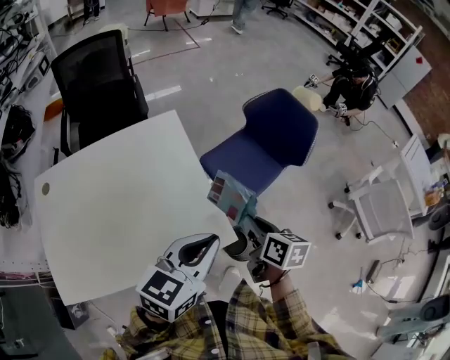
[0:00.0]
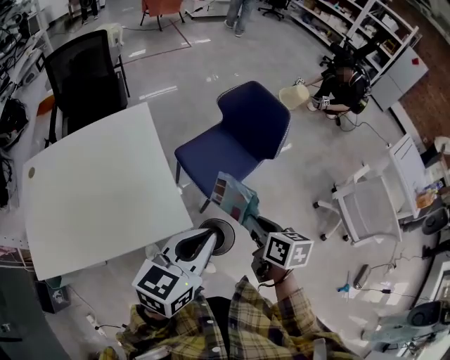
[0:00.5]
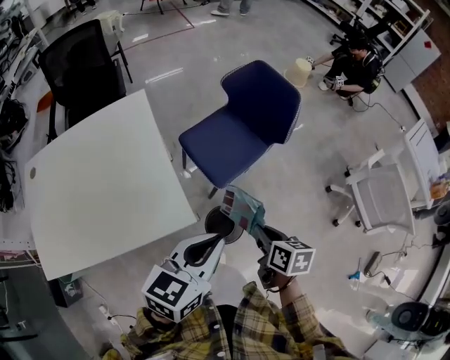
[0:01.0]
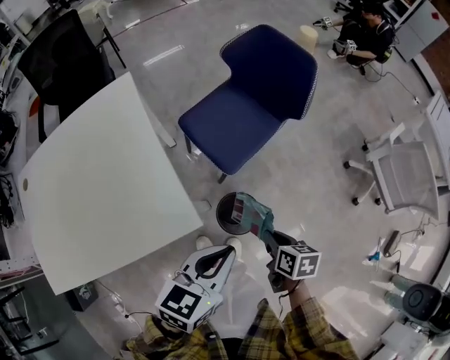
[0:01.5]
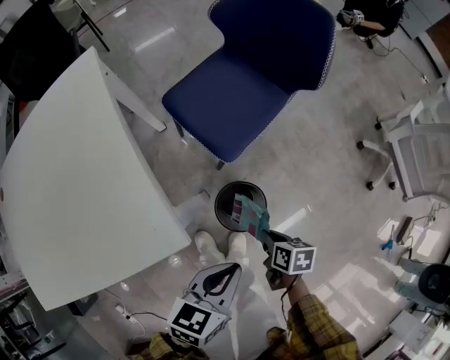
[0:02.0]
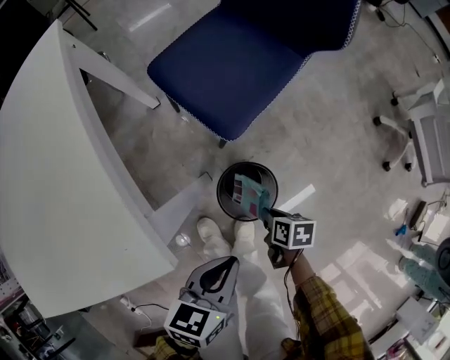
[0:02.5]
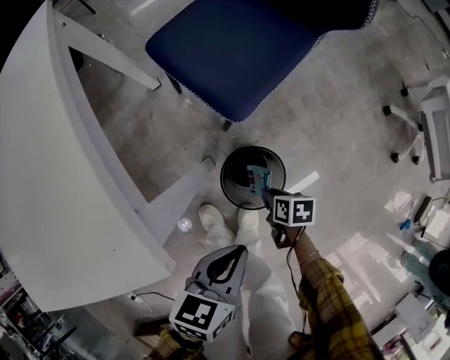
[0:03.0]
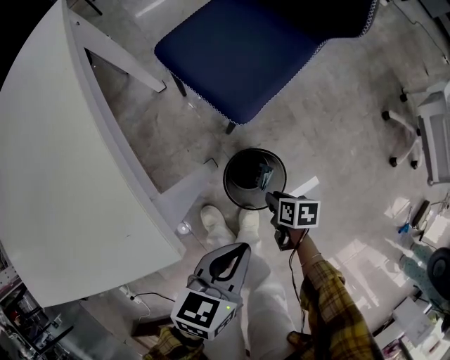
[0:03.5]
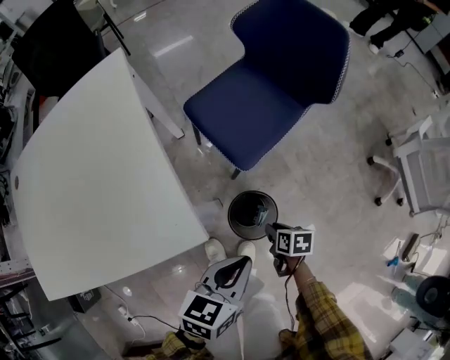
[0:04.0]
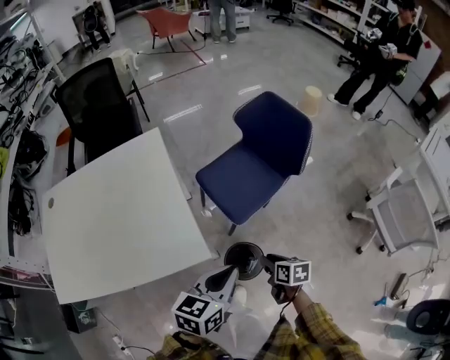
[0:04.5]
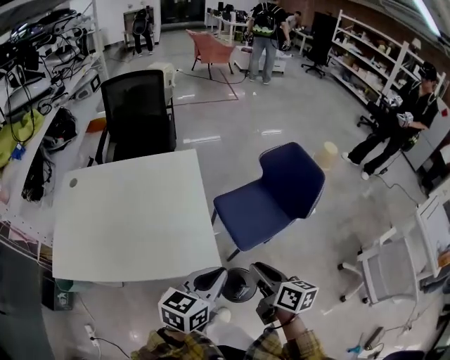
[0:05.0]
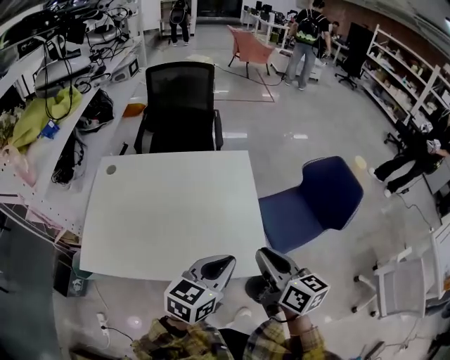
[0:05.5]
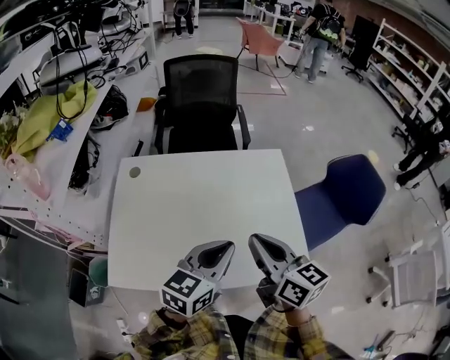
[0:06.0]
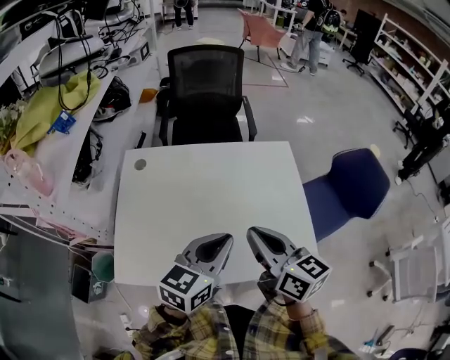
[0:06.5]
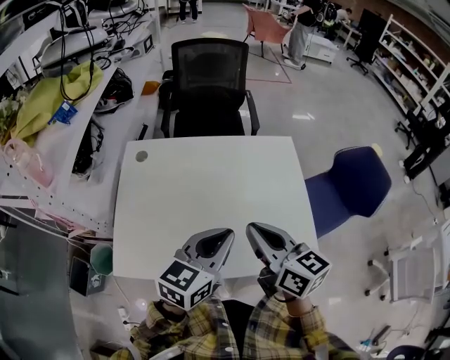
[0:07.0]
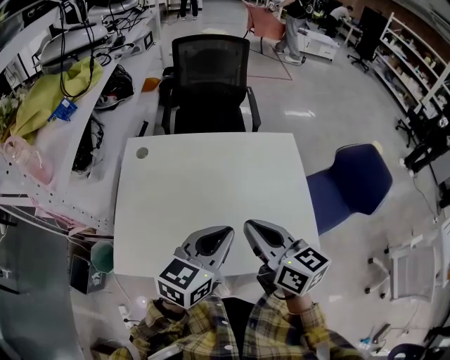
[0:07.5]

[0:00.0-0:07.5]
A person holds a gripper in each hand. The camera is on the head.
0:00.0 to 0:02.0: Both grippers move downward and to the right, about 40 cm. The left gripper rotates some 20 degrees. The right gripper changes its angle by approximately 30 degrees.
0:02.0 to 0:04.0: The left gripper travels downward and back again, roughly 15 cm each way, while the right gripper reaches approximately 20 cm downward, then returns.
0:04.0 to 0:05.5: The right gripper moves upward and to the left, some 60 cm, and angles its fingers upward, by approximately 50 degrees; the left gripper heads upward and to the left, covering approximately 40 cm, and changes its angle by about 30 degrees.
0:05.5 to 0:07.5: The grippers both shift to the left by some 25 cm.

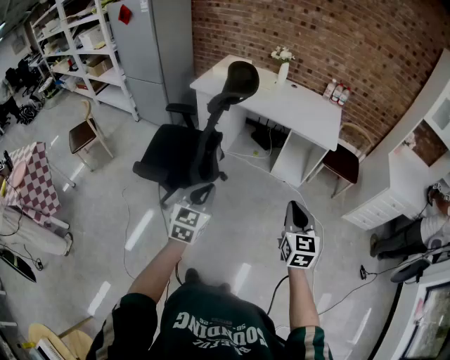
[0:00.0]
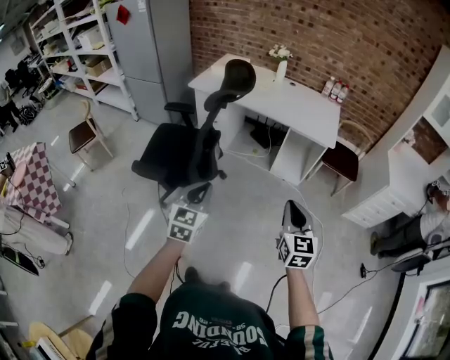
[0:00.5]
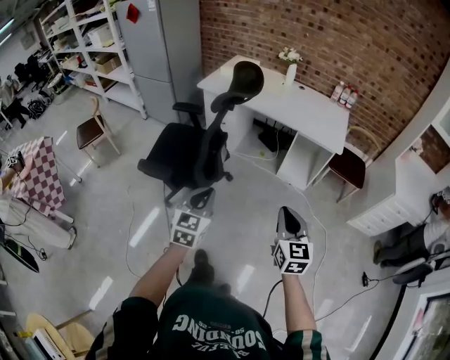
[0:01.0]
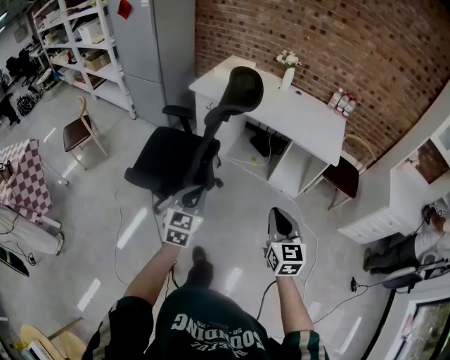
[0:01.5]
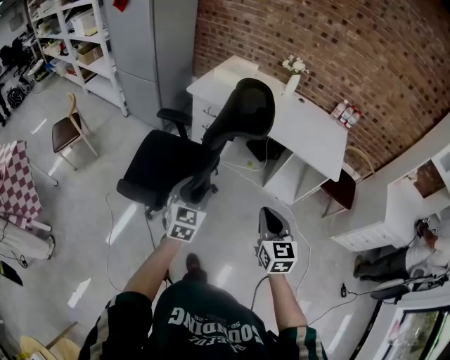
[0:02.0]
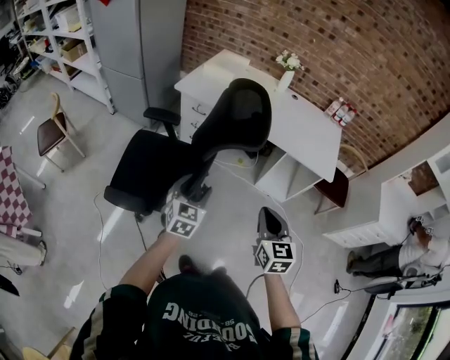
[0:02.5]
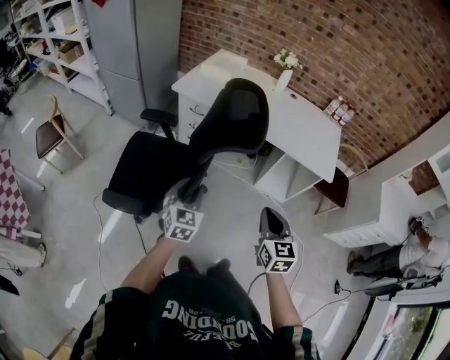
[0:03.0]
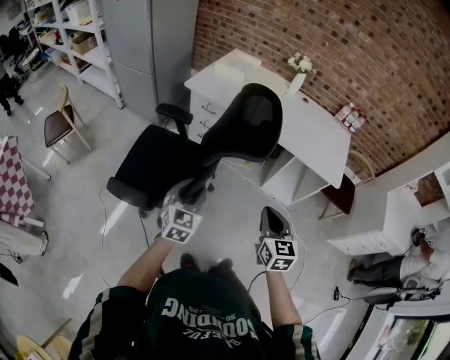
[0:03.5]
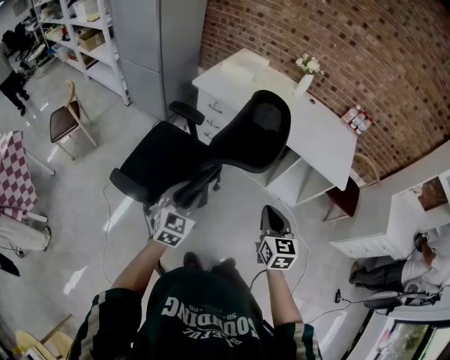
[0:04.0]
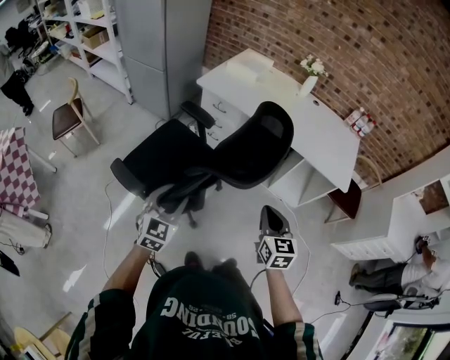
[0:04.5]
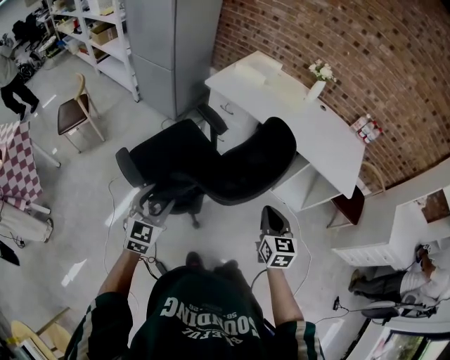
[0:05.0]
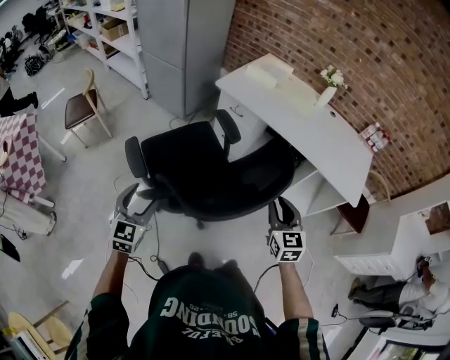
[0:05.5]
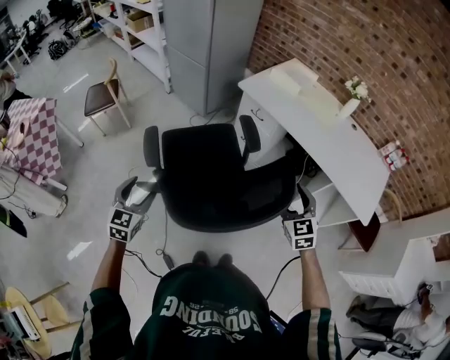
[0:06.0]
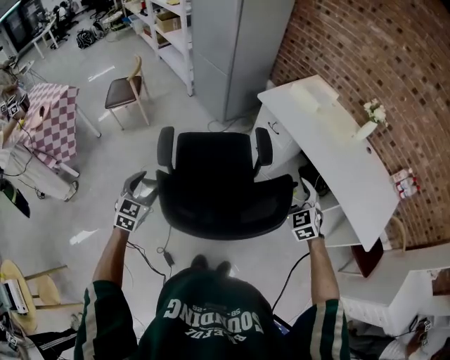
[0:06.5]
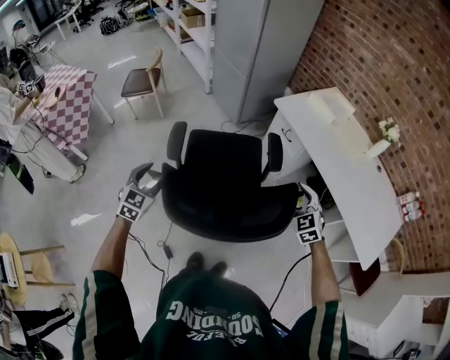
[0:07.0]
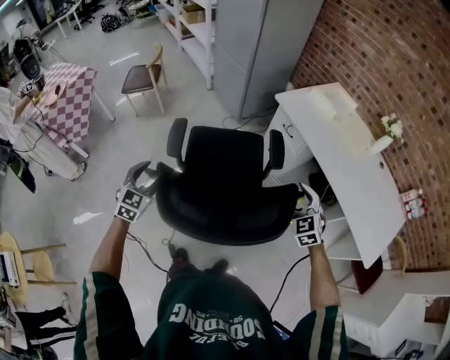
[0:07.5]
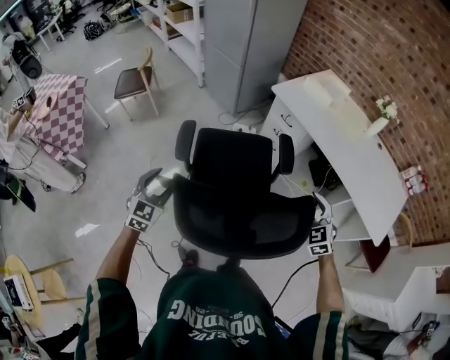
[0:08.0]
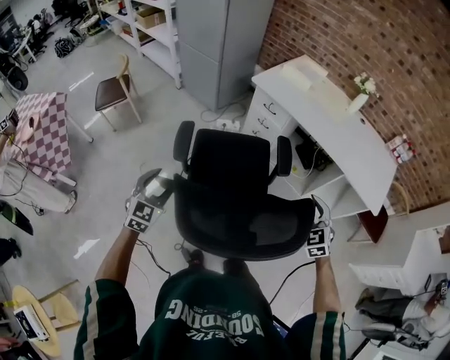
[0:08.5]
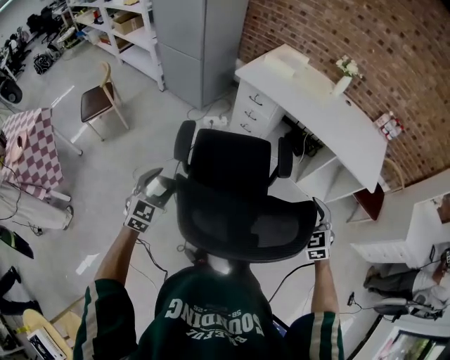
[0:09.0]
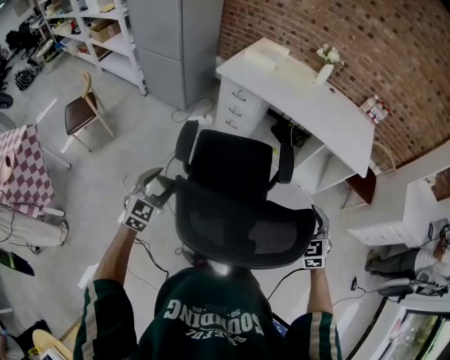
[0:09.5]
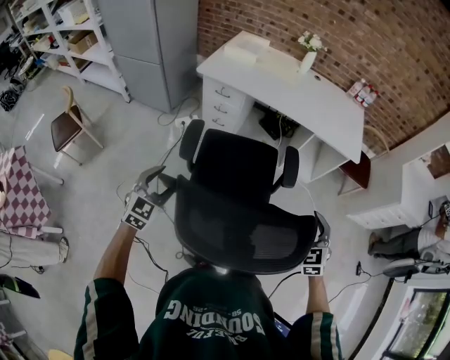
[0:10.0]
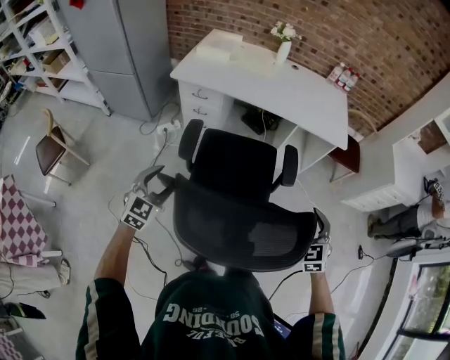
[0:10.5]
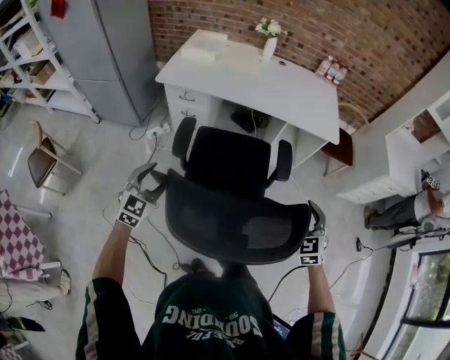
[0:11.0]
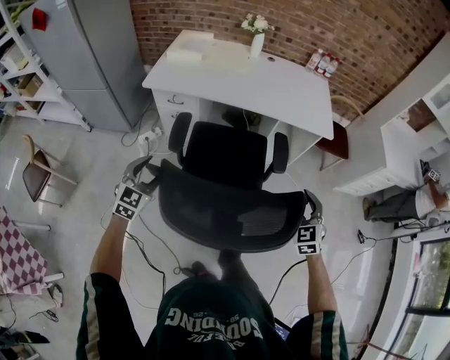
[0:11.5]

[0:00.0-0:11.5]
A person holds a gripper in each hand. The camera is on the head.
0:00.0 to 0:02.0: The right gripper goes roughly 25 cm forward and to the left. Meanwhile the left gripper heads forward, covering roughly 25 cm, and opens.
0:02.0 to 0:04.0: The right gripper goes some 10 cm forward. The left gripper ends up some 5 cm from where it was.
0:04.0 to 0:06.0: The left gripper is displaced to the left by approximately 25 cm, turns by about 20 degrees, and opens, while the right gripper heads forward, covering roughly 15 cm, turns by some 30 degrees, and opens its fingers.
0:06.0 to 0:07.5: The right gripper is displaced forward by roughly 10 cm, and rotates approximately 20 degrees.
0:07.5 to 0:09.5: The right gripper changes place by approximately 30 cm, and turns by roughly 40 degrees; the left gripper swivels approximately 30 degrees.
0:09.5 to 0:11.5: The left gripper is displaced forward by some 25 cm; the right gripper shifts about 10 cm to the right and forward.

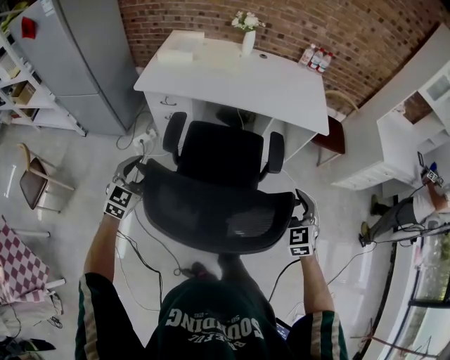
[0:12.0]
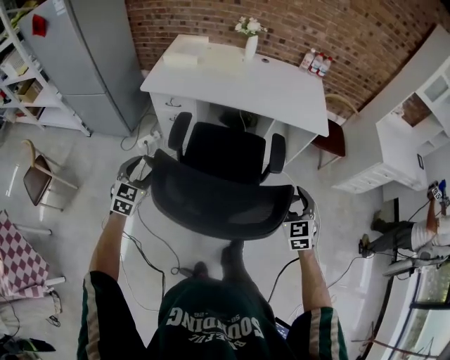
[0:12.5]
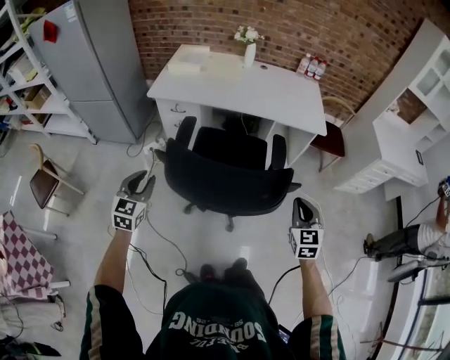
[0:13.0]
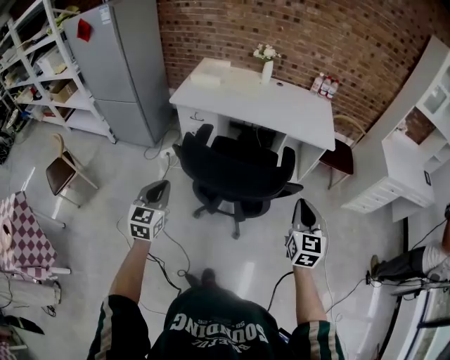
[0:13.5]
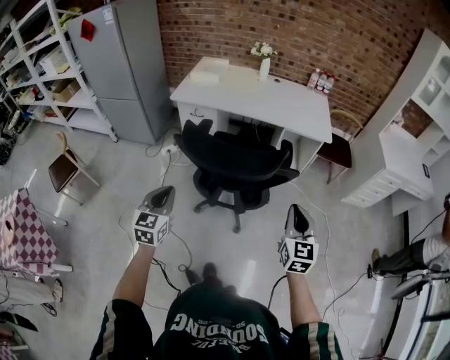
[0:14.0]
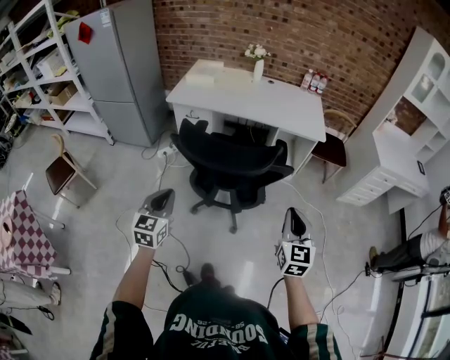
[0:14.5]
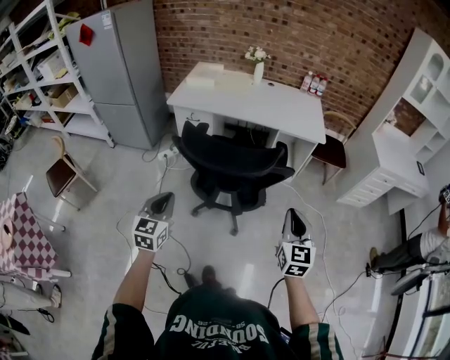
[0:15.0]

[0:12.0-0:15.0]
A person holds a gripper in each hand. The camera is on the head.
0:12.0 to 0:13.5: Both grippers travel together backward and upward, roughly 20 cm. The left gripper turns by about 20 degrees, and closes. Meanwhile the right gripper rotates about 30 degrees, and closes its fingers.
0:13.5 to 0:15.0: The grippers both shift backward by some 10 cm.

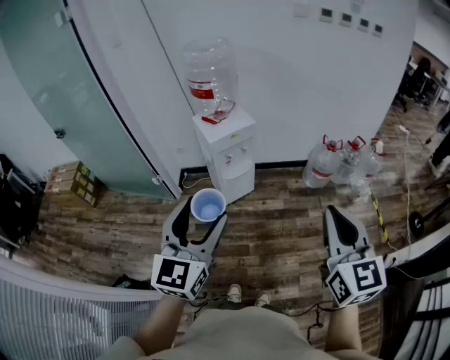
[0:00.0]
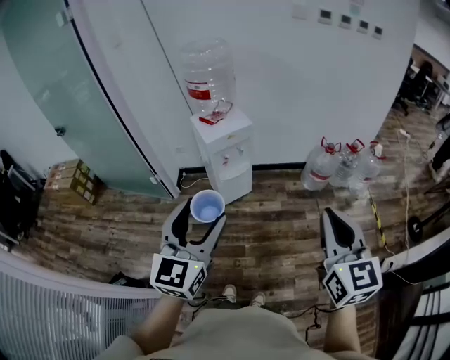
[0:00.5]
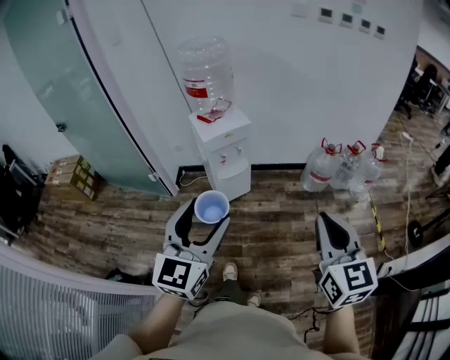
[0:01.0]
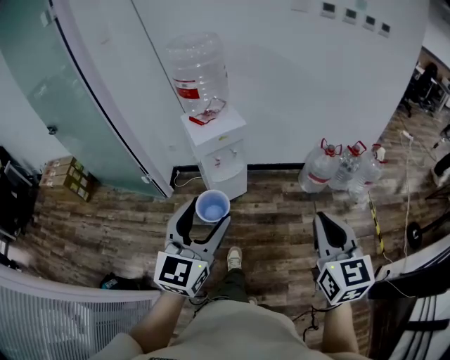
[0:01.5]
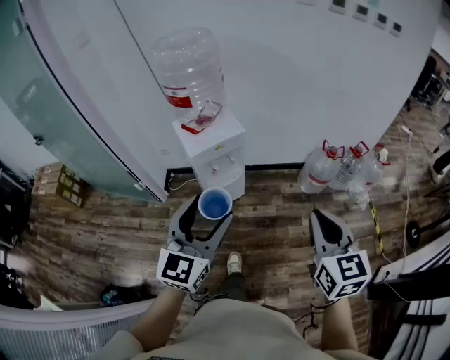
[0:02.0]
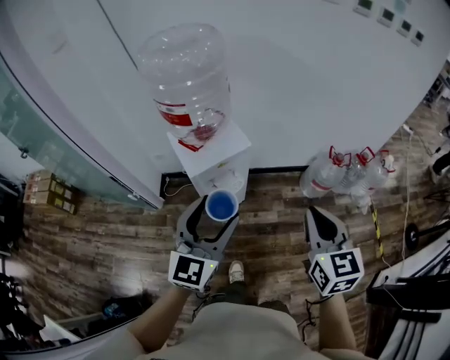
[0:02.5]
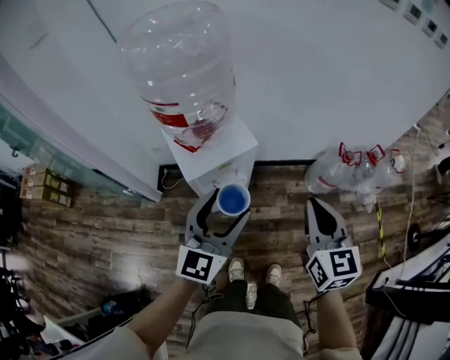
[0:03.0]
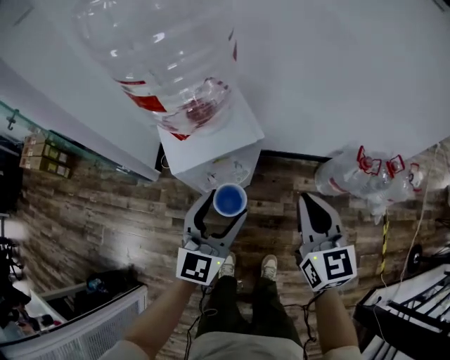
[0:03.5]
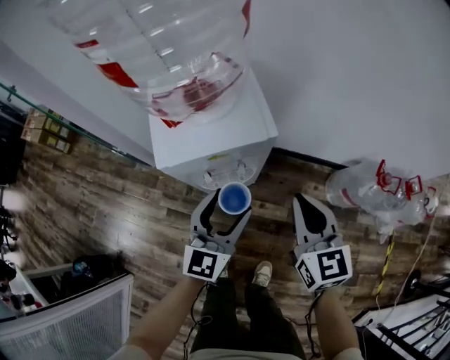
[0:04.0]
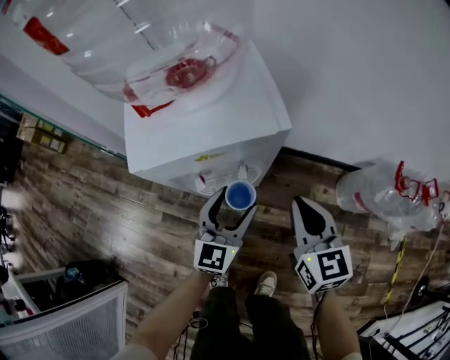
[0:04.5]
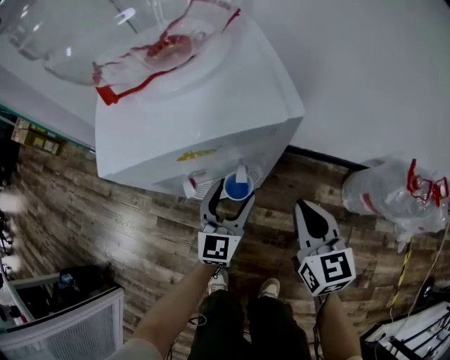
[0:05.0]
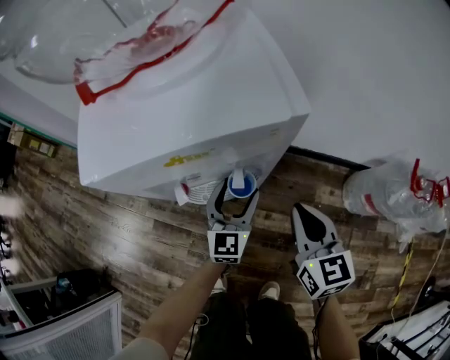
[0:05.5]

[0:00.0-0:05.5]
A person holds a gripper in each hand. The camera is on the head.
0:00.0 to 0:02.0: The left gripper goes approximately 20 cm forward. The right gripper heads forward and downward, covering roughly 20 cm.
0:02.0 to 0:03.5: The two grippers go roughly 35 cm forward and downward.
0:03.5 to 0:05.5: The two grippers go about 40 cm downward.
